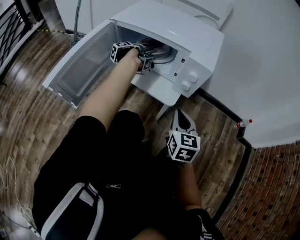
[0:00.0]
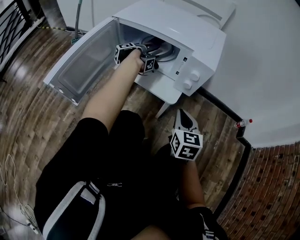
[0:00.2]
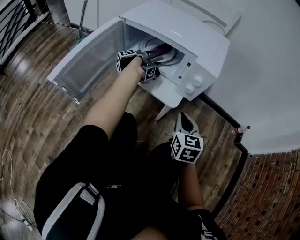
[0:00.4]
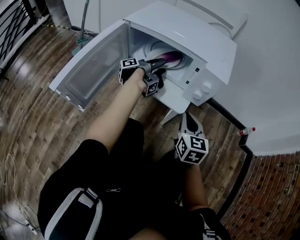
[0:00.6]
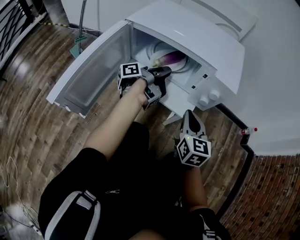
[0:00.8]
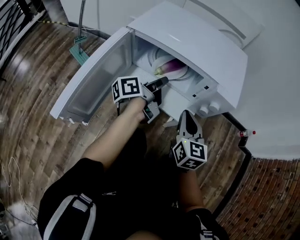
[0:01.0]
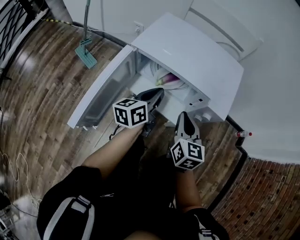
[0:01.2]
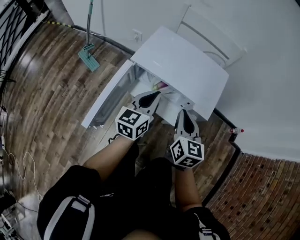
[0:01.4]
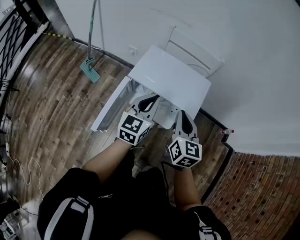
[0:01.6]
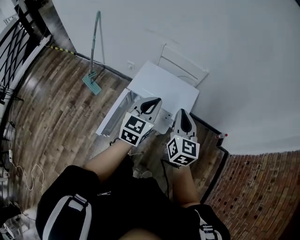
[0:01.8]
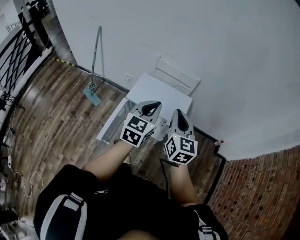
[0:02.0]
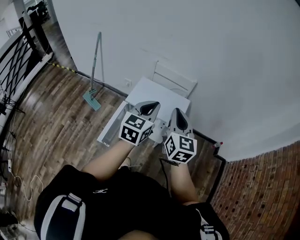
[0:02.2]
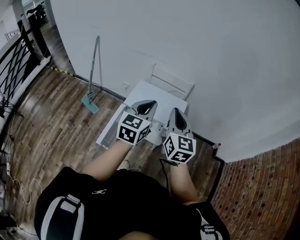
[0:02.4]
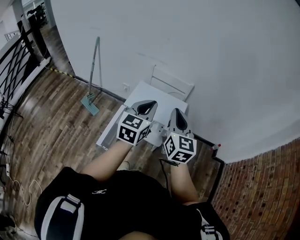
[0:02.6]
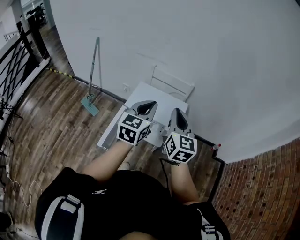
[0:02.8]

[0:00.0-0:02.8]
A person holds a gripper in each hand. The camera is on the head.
0:00.0 to 0:01.4: The right gripper is displaced upward by approximately 25 cm.
0:01.4 to 0:02.8: The right gripper shifts roughly 35 cm upward.

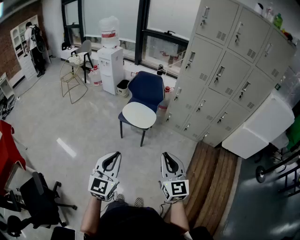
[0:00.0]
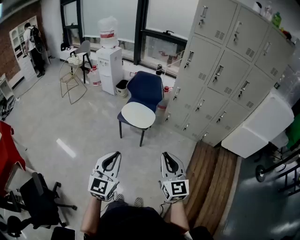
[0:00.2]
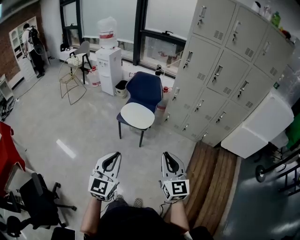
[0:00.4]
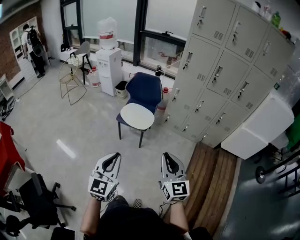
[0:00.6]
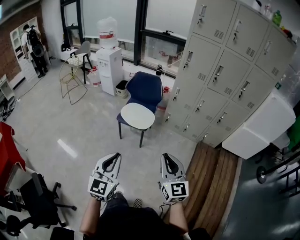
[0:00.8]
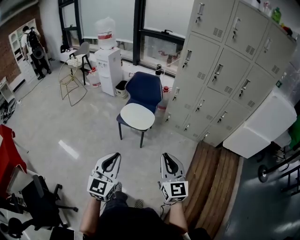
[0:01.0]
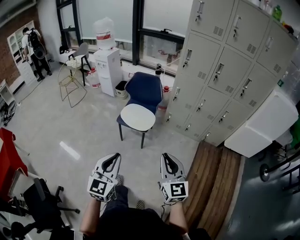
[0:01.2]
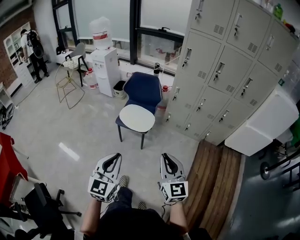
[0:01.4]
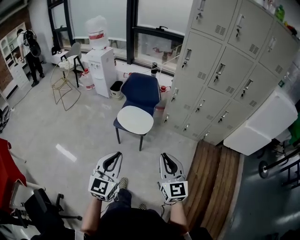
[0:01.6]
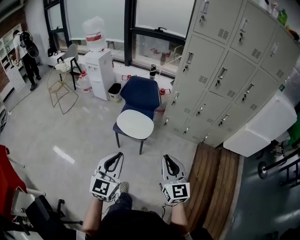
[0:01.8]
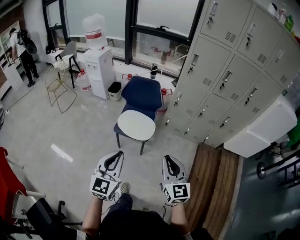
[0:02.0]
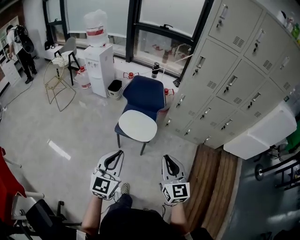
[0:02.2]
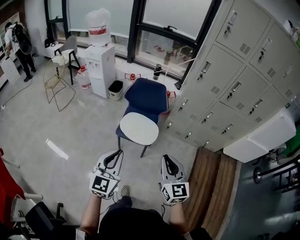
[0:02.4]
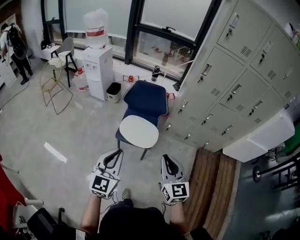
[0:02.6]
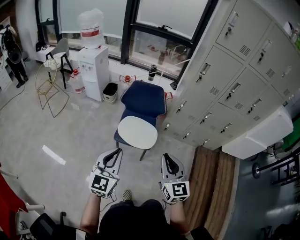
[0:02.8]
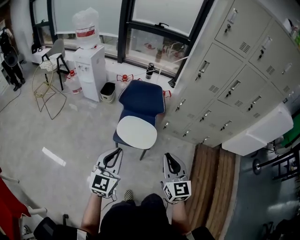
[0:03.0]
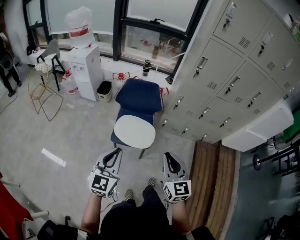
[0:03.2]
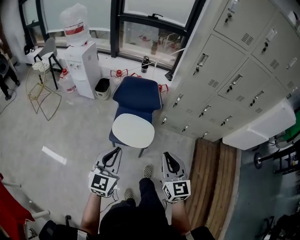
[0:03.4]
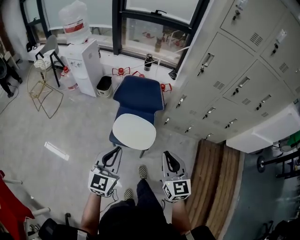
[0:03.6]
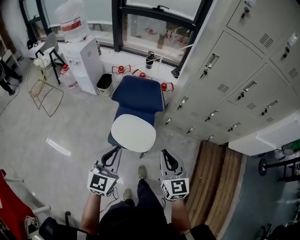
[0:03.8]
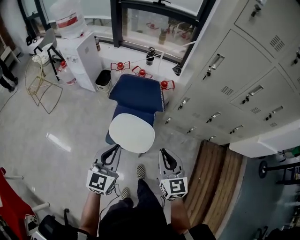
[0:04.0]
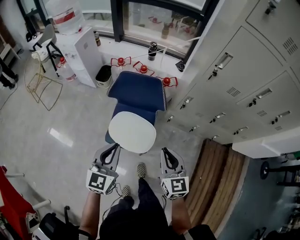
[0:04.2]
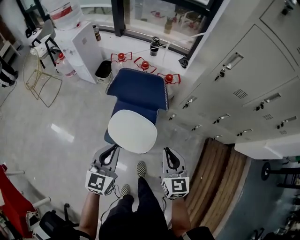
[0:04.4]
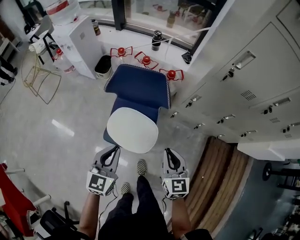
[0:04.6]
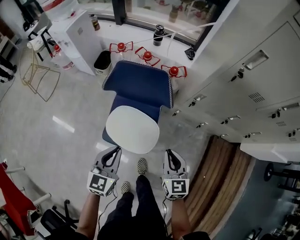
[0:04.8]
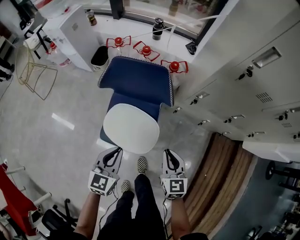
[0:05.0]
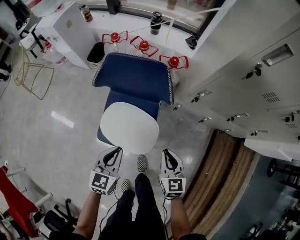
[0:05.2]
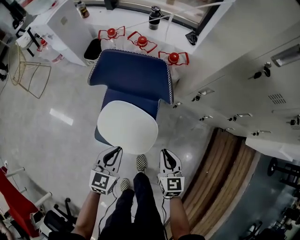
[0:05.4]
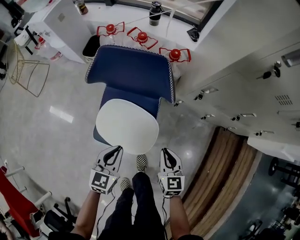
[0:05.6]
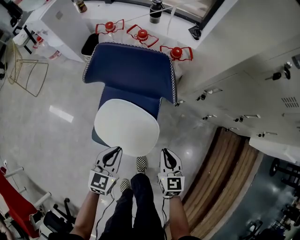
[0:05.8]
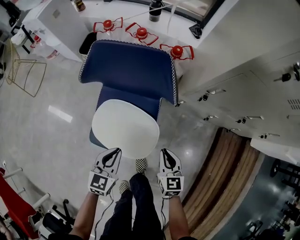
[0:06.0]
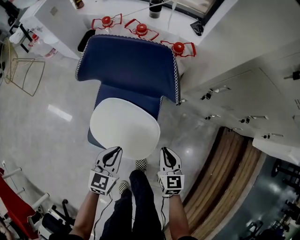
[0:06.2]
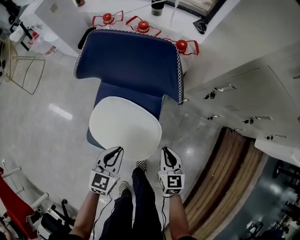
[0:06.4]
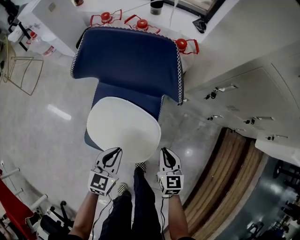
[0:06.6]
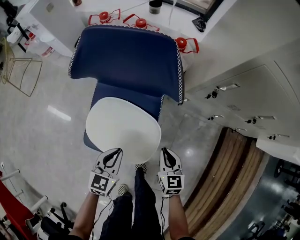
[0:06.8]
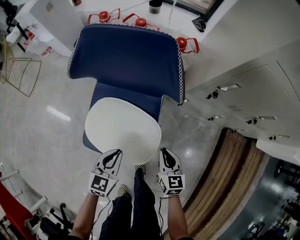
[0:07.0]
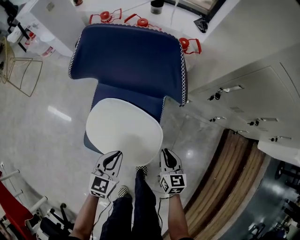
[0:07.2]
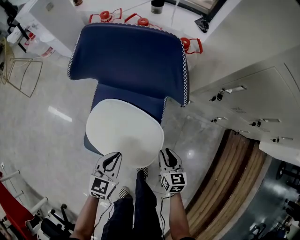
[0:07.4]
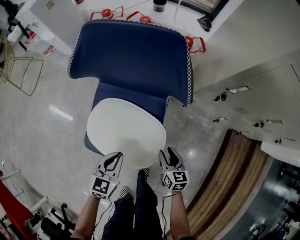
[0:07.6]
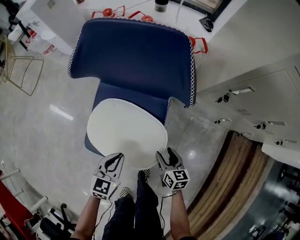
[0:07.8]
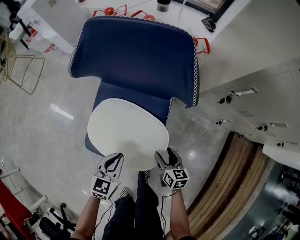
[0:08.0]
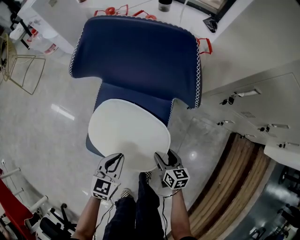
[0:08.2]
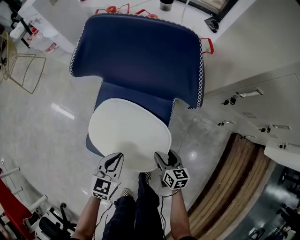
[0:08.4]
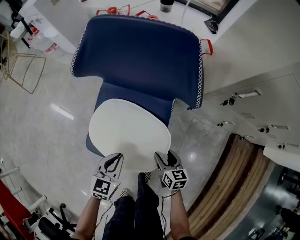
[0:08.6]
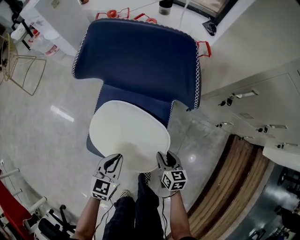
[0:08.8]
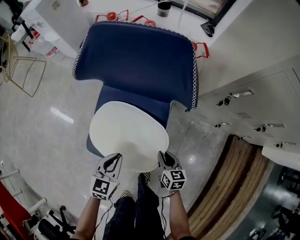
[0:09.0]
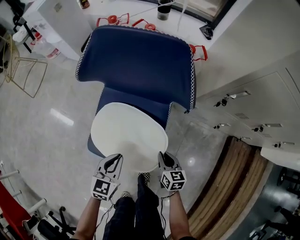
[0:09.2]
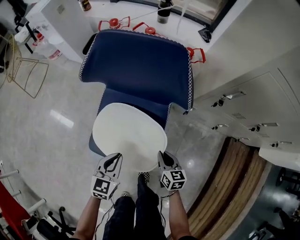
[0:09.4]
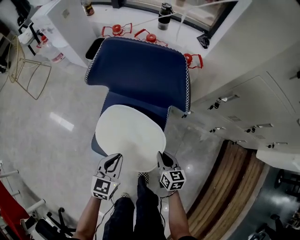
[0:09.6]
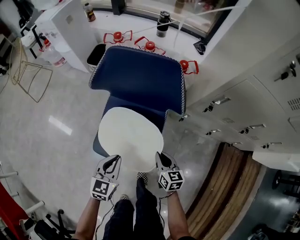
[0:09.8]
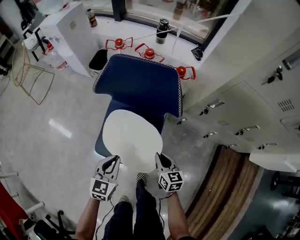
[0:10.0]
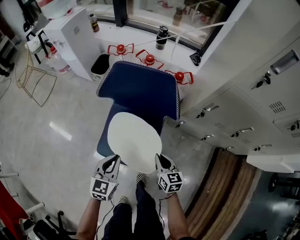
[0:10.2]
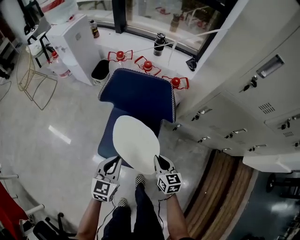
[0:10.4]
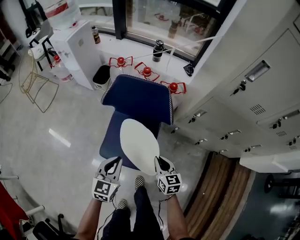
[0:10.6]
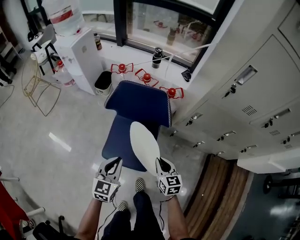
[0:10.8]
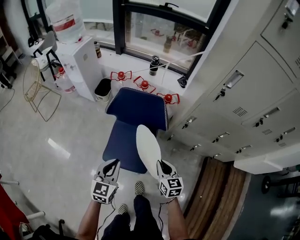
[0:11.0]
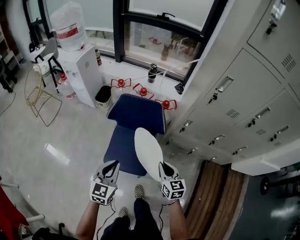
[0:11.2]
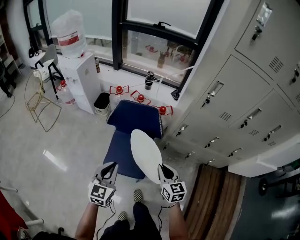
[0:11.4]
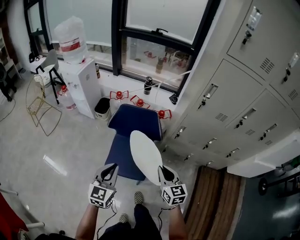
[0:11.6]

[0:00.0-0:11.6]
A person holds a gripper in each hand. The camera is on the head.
0:00.0 to 0:01.4: The two grippers go some 10 cm forward.
0:01.4 to 0:02.8: Both grippers travel together forward and to the left, some 35 cm.
0:02.8 to 0:04.4: The two grippers go some 35 cm forward and downward.
0:04.4 to 0:05.8: The two grippers go about 30 cm downward.
0:05.8 to 0:07.2: The grippers both shift downward by some 15 cm.
0:07.2 to 0:08.8: The left gripper shifts by about 5 cm; the right gripper travels downward by some 10 cm, and opens.
0:08.8 to 0:10.2: The grippers both shift upward by about 20 cm. The right gripper closes its fingers.
0:10.2 to 0:11.6: Both grippers move upward, approximately 35 cm.

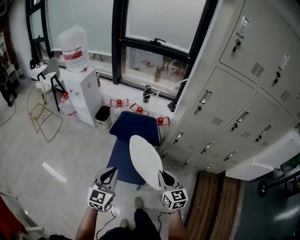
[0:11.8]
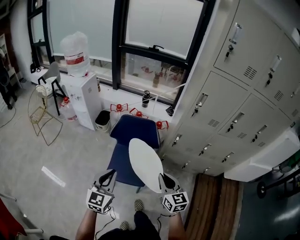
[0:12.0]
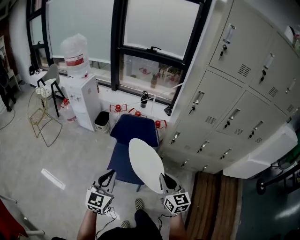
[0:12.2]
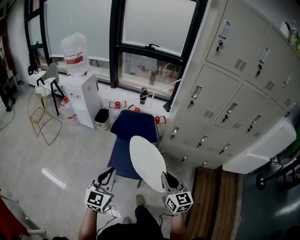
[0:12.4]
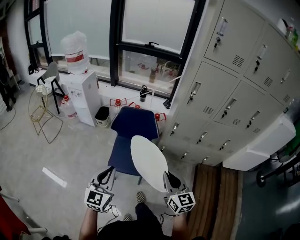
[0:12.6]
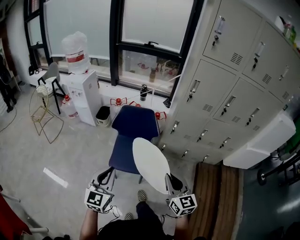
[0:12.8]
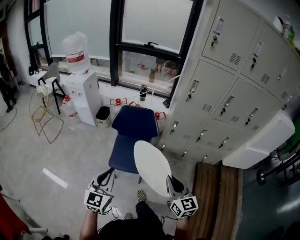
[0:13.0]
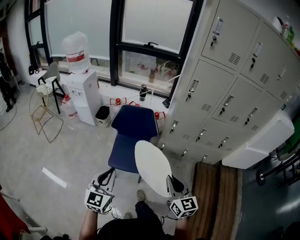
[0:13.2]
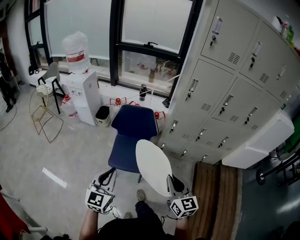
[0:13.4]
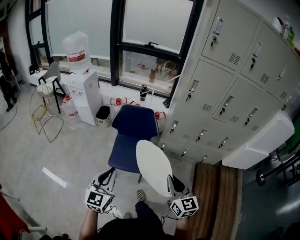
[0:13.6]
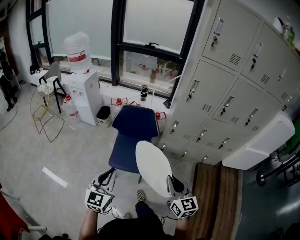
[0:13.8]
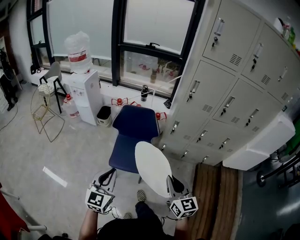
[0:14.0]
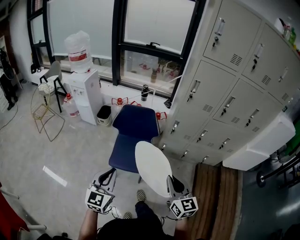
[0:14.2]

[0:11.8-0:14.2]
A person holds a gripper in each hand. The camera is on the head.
0:11.8 to 0:13.0: The grippers both shift backward by roughly 20 cm.
0:13.0 to 0:14.2: Both grippers stay about where they are.

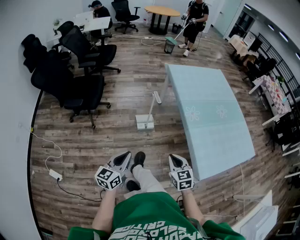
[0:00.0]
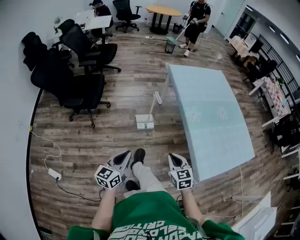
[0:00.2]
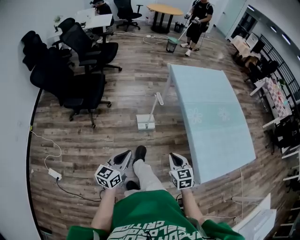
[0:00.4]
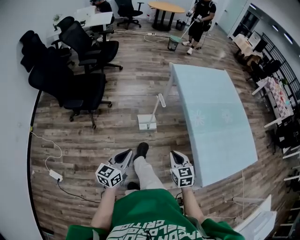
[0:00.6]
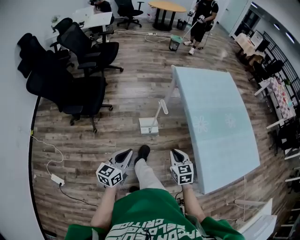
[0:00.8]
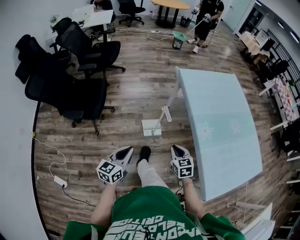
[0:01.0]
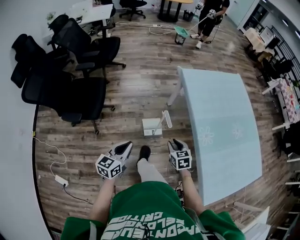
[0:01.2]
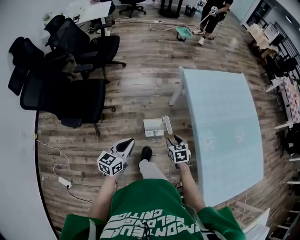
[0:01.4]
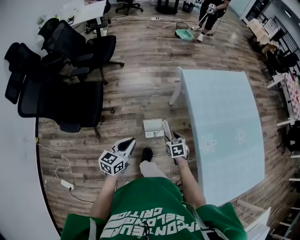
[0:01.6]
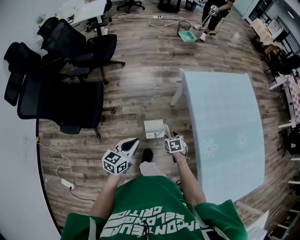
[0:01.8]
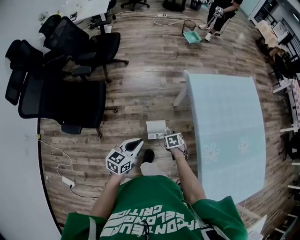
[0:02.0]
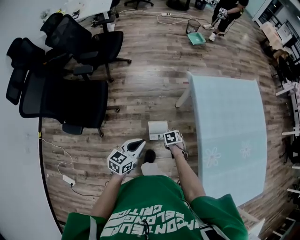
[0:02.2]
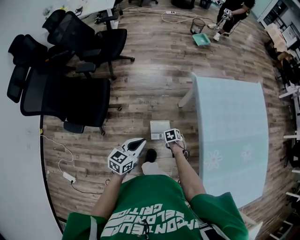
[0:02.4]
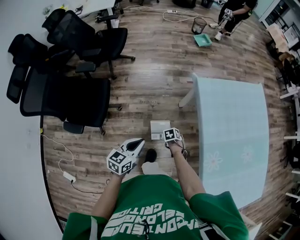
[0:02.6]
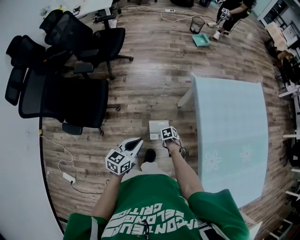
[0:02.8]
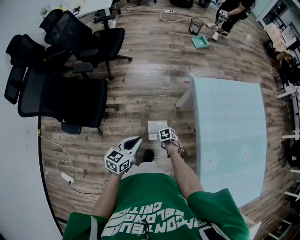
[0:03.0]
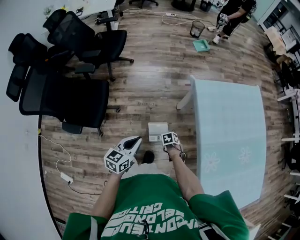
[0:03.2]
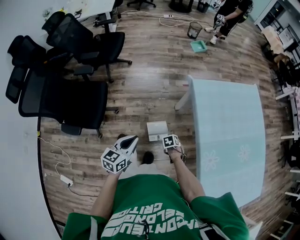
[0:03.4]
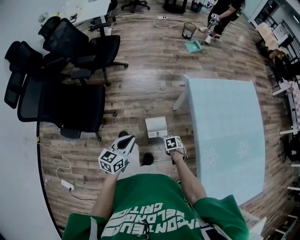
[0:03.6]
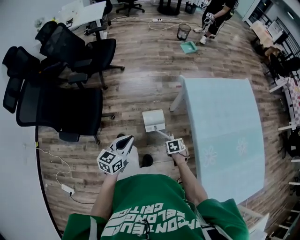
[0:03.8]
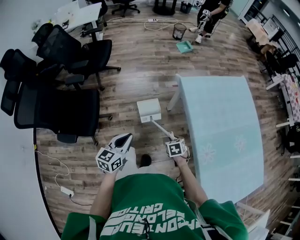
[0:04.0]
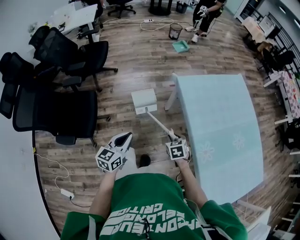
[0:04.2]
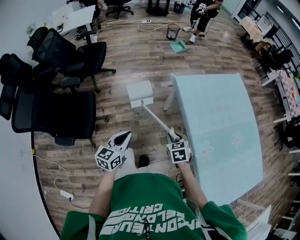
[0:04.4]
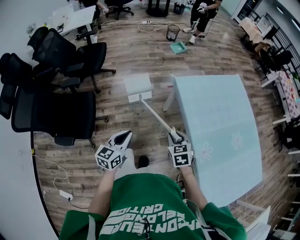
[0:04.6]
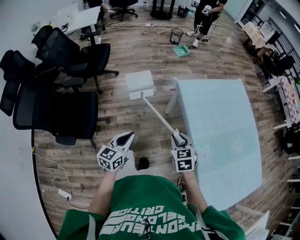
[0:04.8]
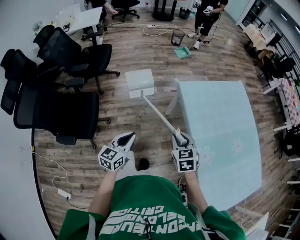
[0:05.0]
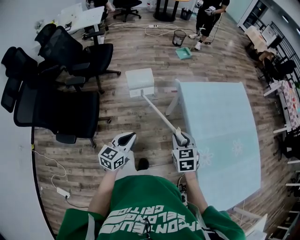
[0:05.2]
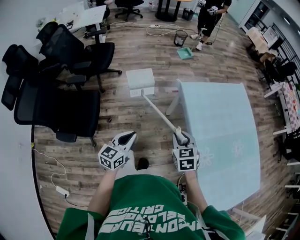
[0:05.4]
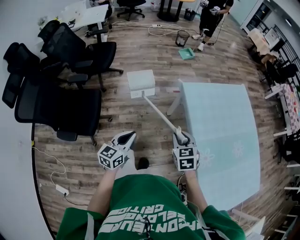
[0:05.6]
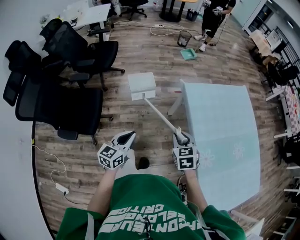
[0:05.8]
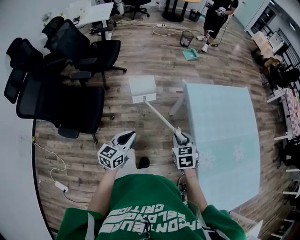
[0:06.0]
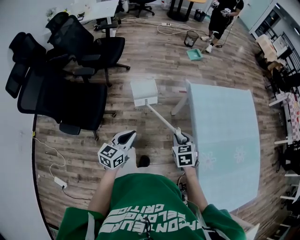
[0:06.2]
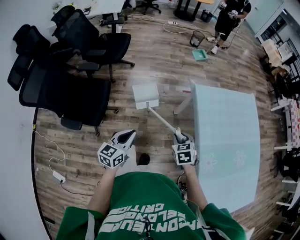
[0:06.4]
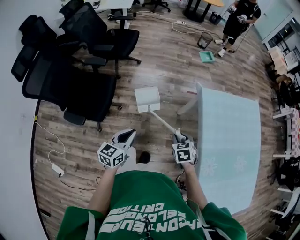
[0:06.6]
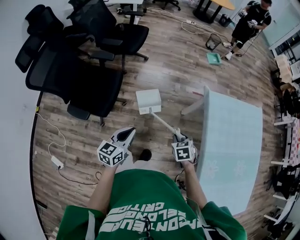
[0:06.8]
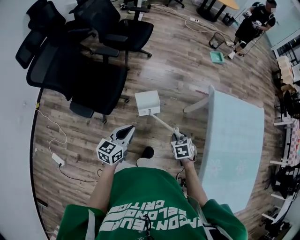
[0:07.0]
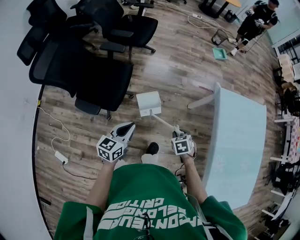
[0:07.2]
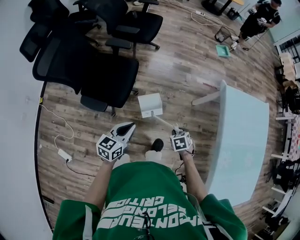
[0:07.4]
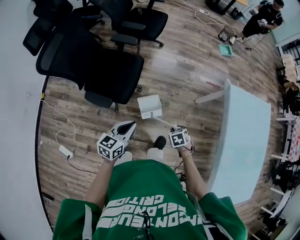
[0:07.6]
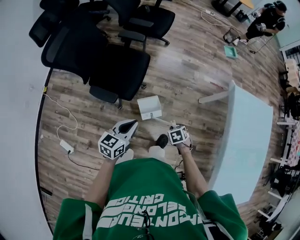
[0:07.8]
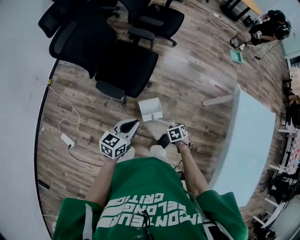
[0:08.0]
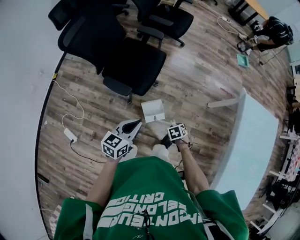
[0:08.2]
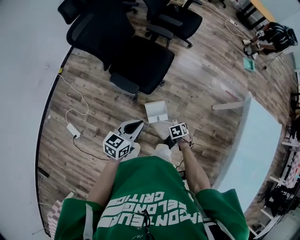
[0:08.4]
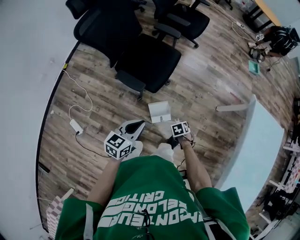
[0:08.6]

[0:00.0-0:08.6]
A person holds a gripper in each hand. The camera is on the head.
0:00.0 to 0:01.4: Both grippers move forward, some 40 cm. The right gripper opens up.
0:01.4 to 0:02.8: The right gripper moves downward, some 20 cm, and tips its fingers downward by about 40 degrees. The left gripper changes place by about 15 cm.
0:02.8 to 0:04.4: The left gripper moves about 5 cm. Meanwhile the right gripper heads upward, covering about 25 cm, and tilts its fingers about 40 degrees upward.
0:04.4 to 0:05.8: The right gripper is displaced upward by some 10 cm.
0:05.8 to 0:07.2: The right gripper travels to the left and downward by approximately 25 cm, and changes its angle by approximately 30 degrees. The left gripper moves to the left, about 20 cm.
0:07.2 to 0:08.6: The right gripper changes place by some 30 cm, and swivels roughly 20 degrees; the left gripper ends up roughly 25 cm from where it was.
